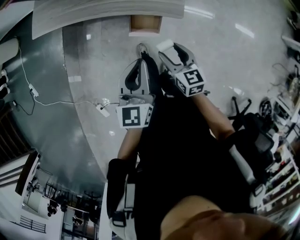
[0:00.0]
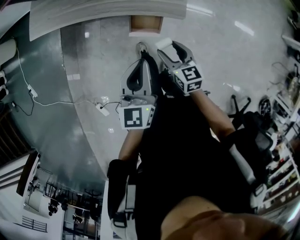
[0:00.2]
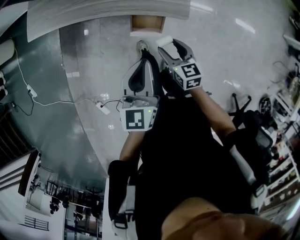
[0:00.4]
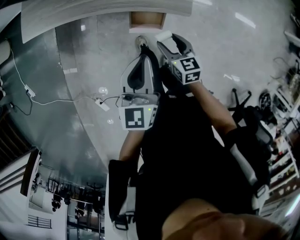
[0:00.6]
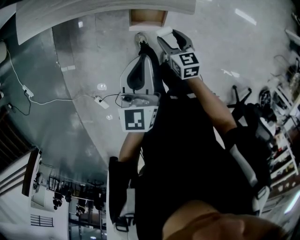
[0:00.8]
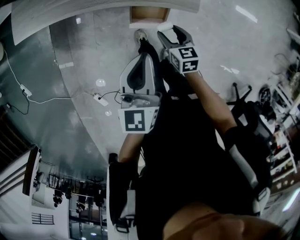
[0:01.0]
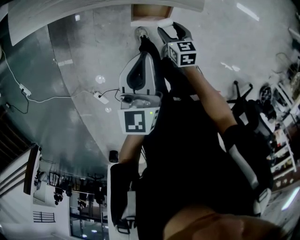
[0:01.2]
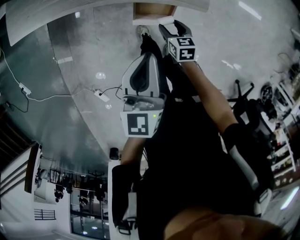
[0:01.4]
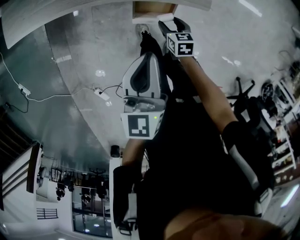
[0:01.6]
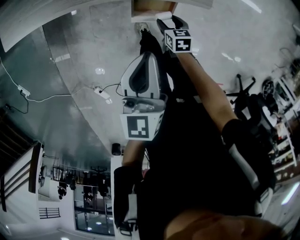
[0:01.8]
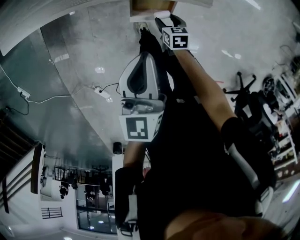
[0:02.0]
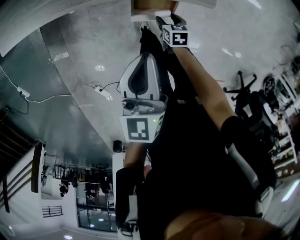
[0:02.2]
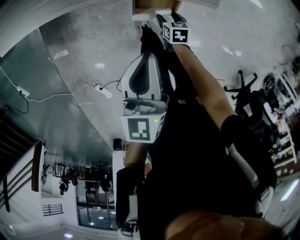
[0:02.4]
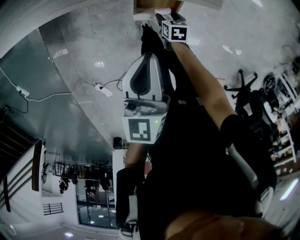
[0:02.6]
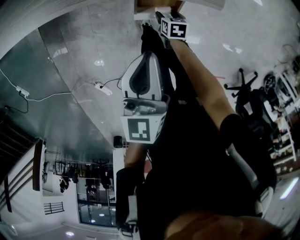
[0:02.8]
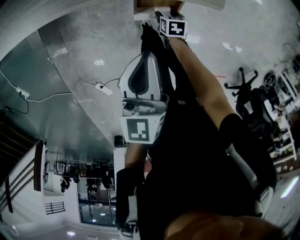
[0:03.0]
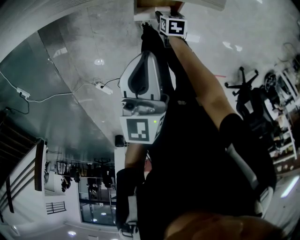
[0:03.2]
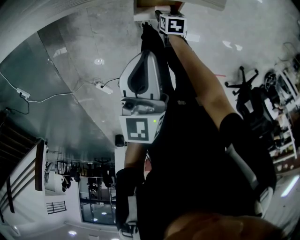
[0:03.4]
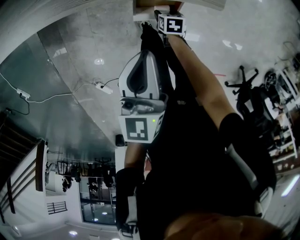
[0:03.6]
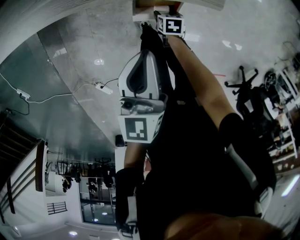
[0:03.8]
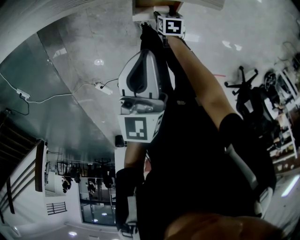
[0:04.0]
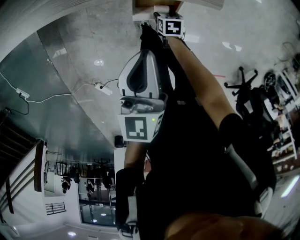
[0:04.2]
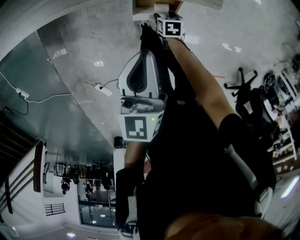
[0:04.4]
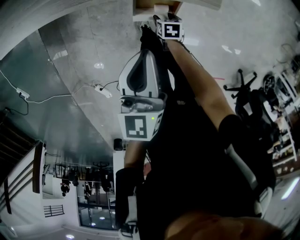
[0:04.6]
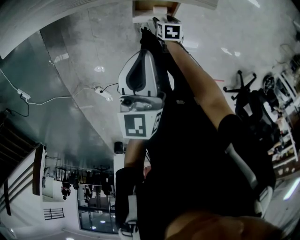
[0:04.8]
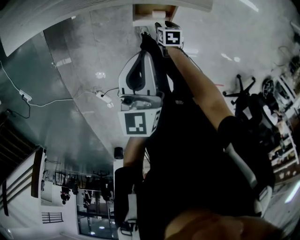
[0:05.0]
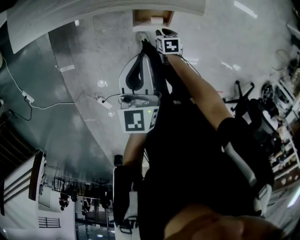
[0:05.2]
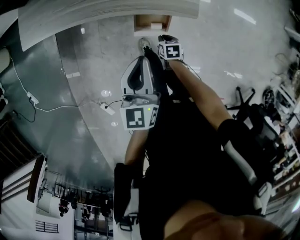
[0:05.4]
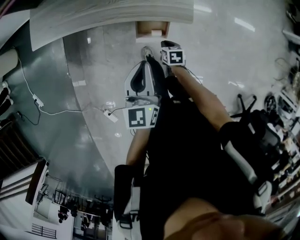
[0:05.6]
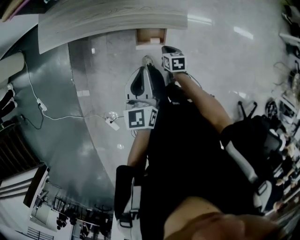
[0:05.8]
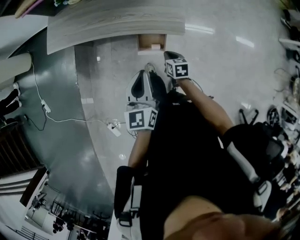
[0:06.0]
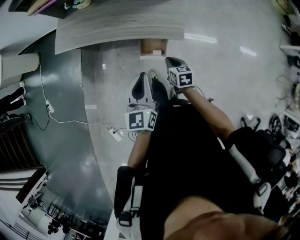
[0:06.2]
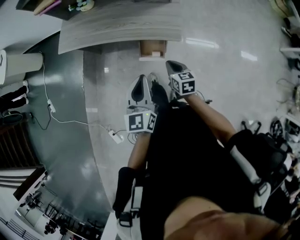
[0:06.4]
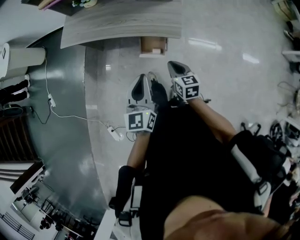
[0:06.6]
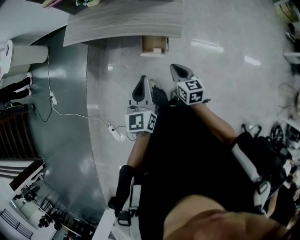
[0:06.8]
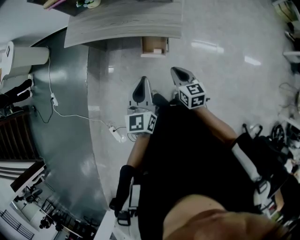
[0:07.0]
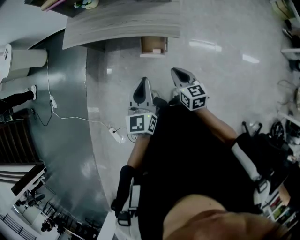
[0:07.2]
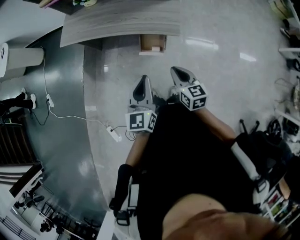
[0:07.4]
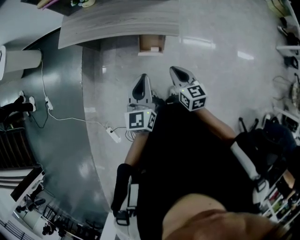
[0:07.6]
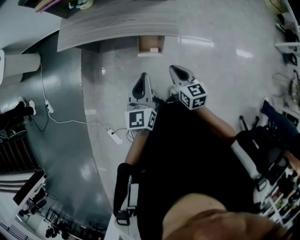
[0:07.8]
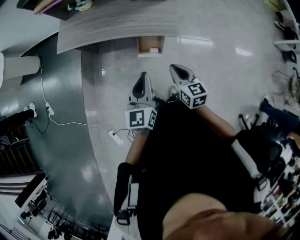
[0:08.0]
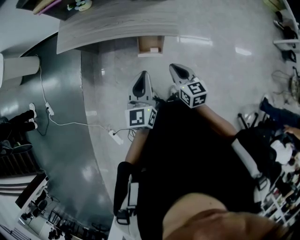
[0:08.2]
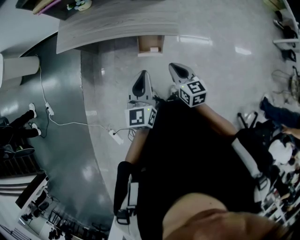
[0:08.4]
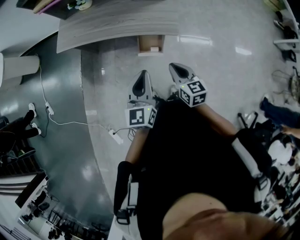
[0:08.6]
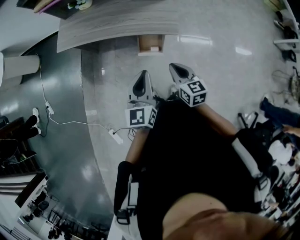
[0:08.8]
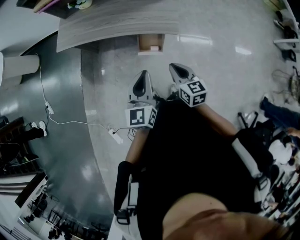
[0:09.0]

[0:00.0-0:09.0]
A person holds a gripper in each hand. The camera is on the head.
0:00.0 to 0:01.6: The left gripper shifts approximately 10 cm downward and forward; the right gripper is displaced downward by roughly 25 cm, and swivels about 30 degrees.
0:01.6 to 0:03.0: The left gripper changes place by some 5 cm. The right gripper is displaced downward by approximately 10 cm.
0:03.0 to 0:04.4: The two grippers keep their place.
0:04.4 to 0:06.0: The right gripper is displaced upward by approximately 25 cm, swivels roughly 30 degrees, and closes its fingers; the left gripper goes some 15 cm upward.
0:06.0 to 0:07.6: The right gripper is displaced upward and backward by approximately 25 cm, and turns by some 30 degrees, while the left gripper heads backward and upward, covering approximately 10 cm.
0:07.6 to 0:09.0: The grippers make only small movements.
